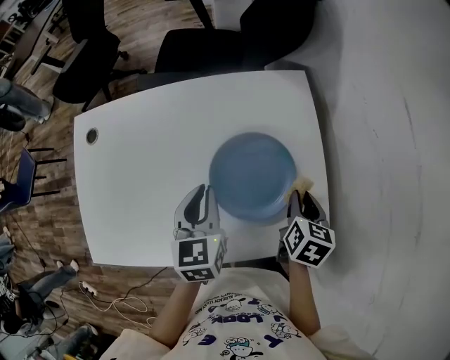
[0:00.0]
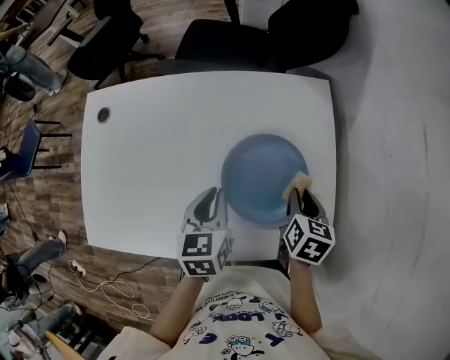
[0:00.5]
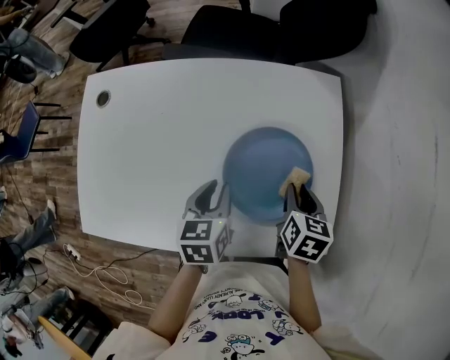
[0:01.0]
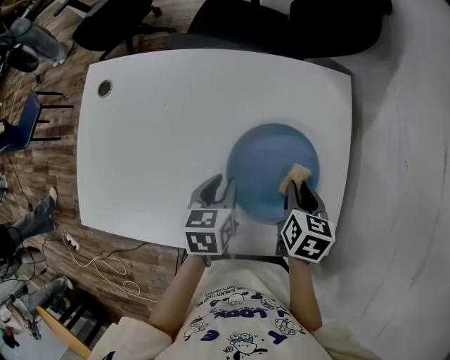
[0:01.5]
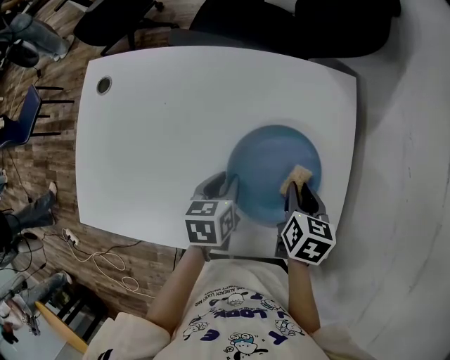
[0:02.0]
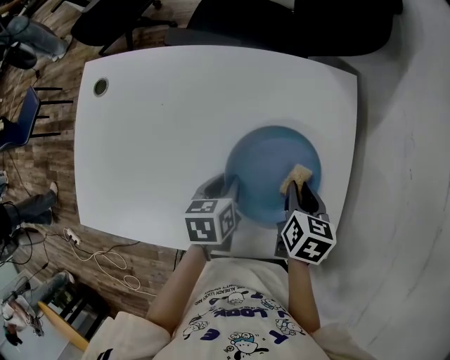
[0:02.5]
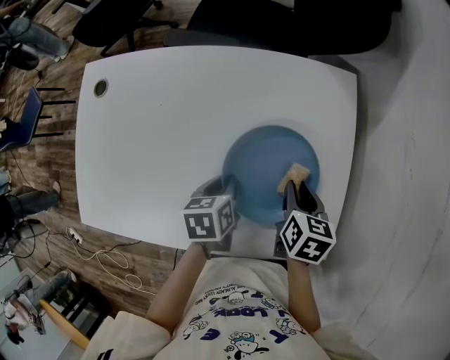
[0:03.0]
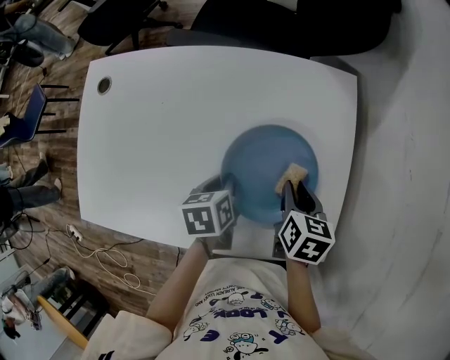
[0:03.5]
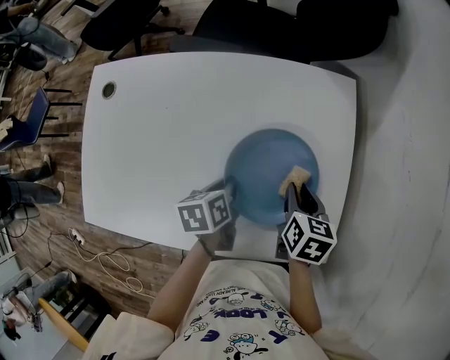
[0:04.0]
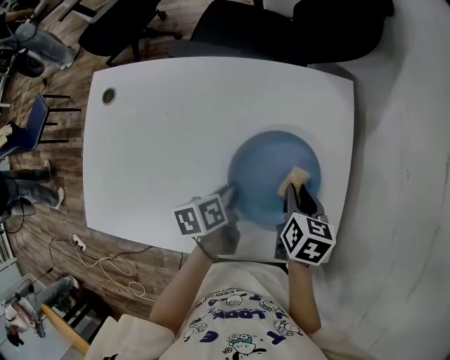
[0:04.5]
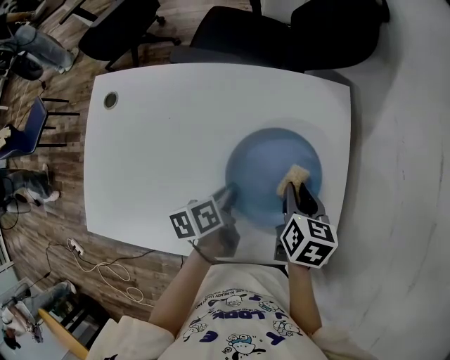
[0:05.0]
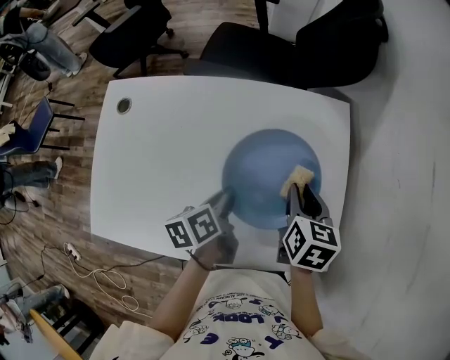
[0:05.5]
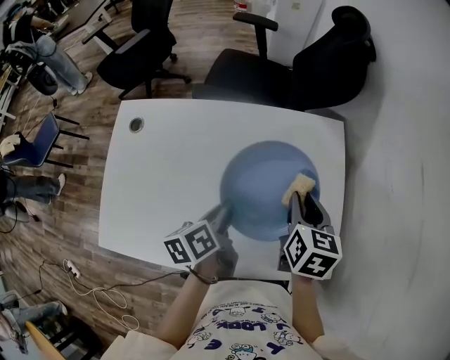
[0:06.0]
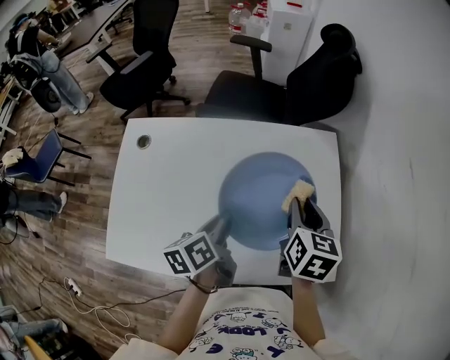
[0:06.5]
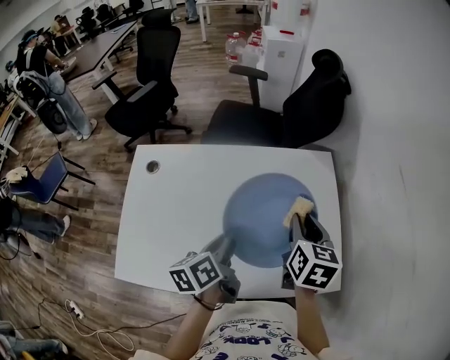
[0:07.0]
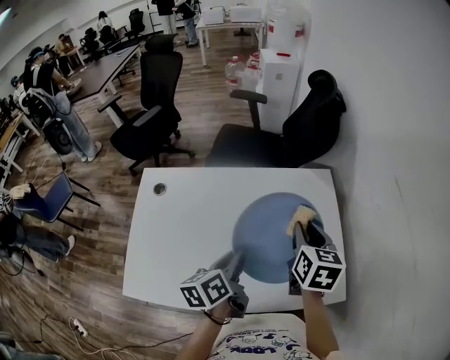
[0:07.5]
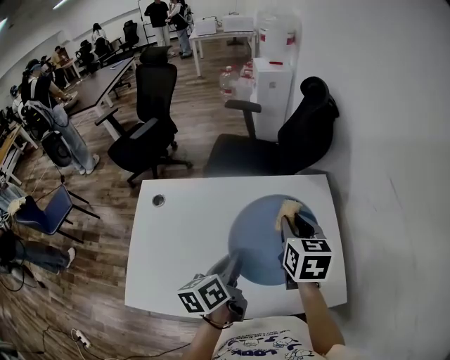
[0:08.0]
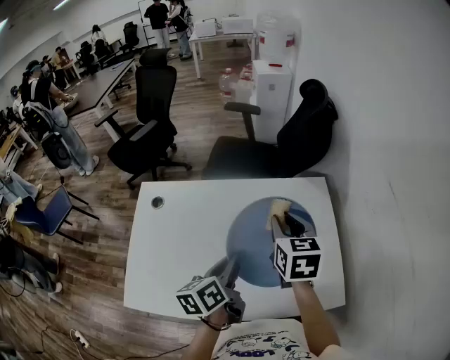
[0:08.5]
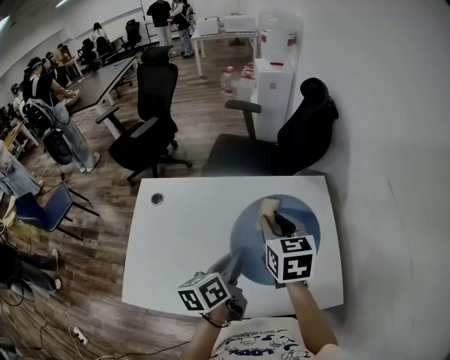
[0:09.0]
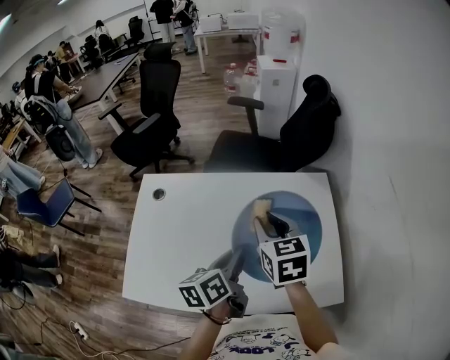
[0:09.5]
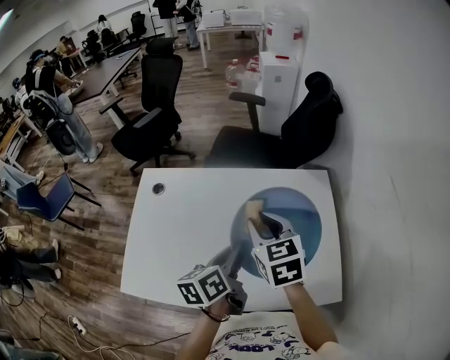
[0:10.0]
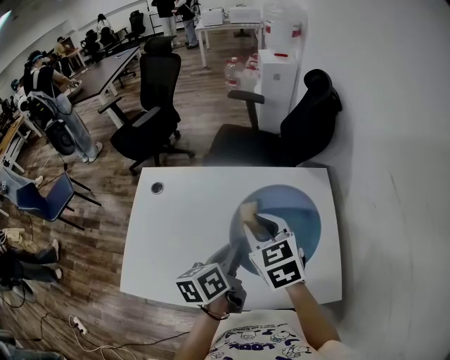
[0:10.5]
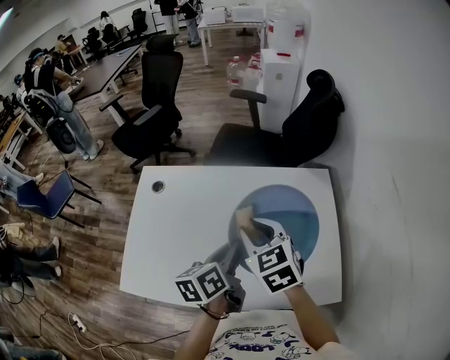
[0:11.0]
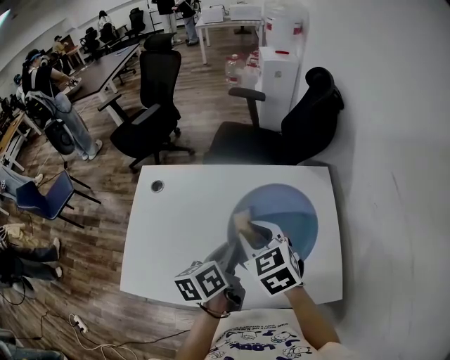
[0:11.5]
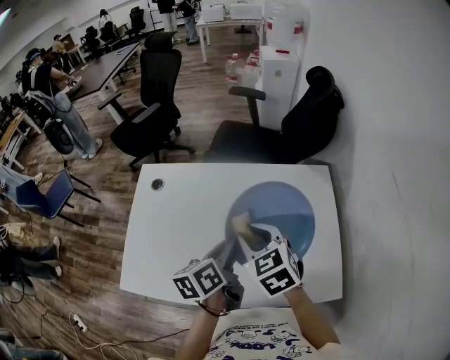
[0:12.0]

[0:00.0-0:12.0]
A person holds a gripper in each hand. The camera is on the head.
0:00.0 to 0:02.0: The right gripper goes about 5 cm to the left; the left gripper travels downward by about 10 cm, and changes its angle by about 30 degrees.
0:02.0 to 0:04.0: The grippers make only small movements.
0:04.0 to 0:06.0: Both grippers travel together upward and to the left, about 15 cm. The left gripper turns by about 20 degrees.
0:06.0 to 0:08.0: The right gripper heads upward and to the left, covering about 10 cm. The left gripper moves upward, approximately 10 cm.
0:08.0 to 0:10.0: The right gripper heads to the left, covering some 10 cm, and changes its angle by about 20 degrees.
0:10.0 to 0:12.0: The right gripper changes place by approximately 5 cm.

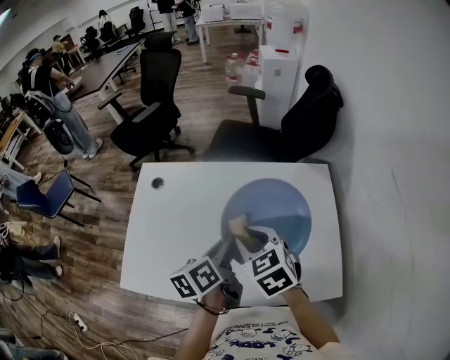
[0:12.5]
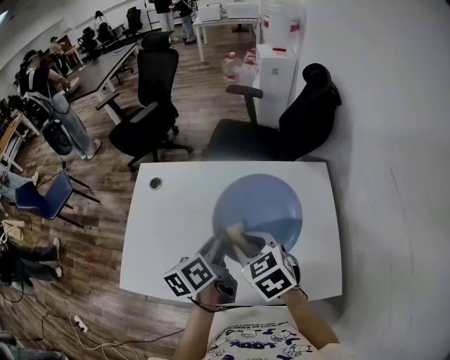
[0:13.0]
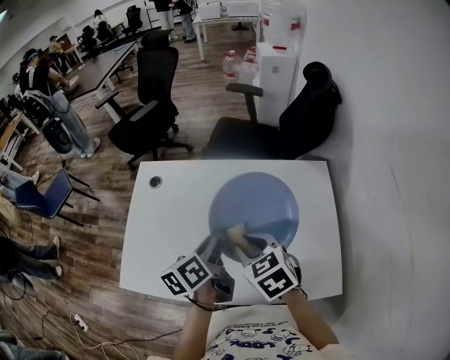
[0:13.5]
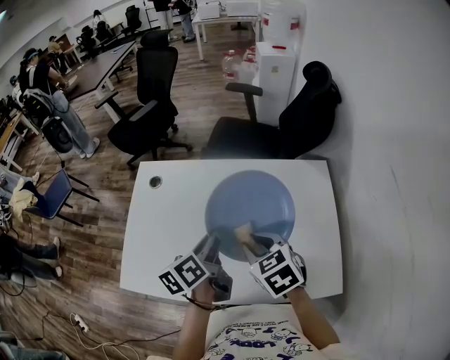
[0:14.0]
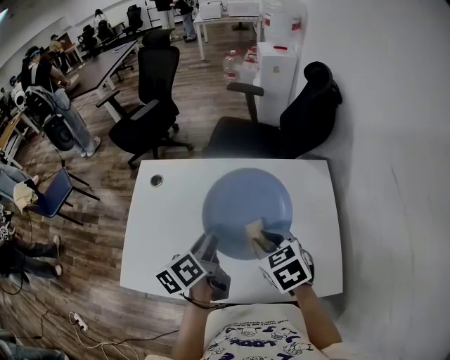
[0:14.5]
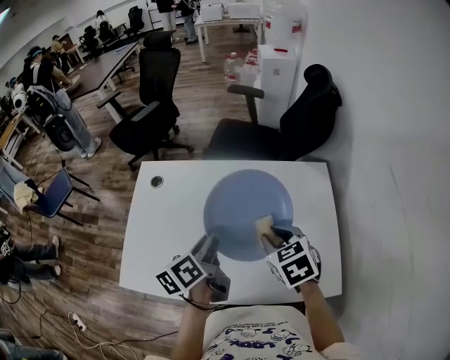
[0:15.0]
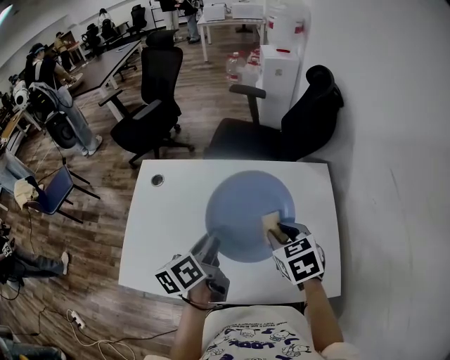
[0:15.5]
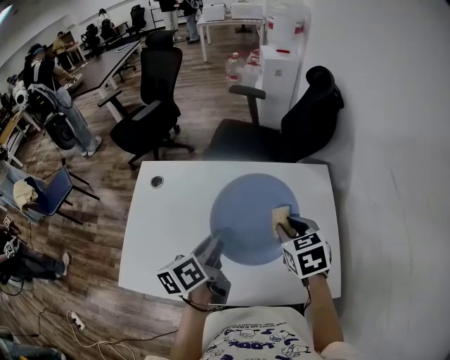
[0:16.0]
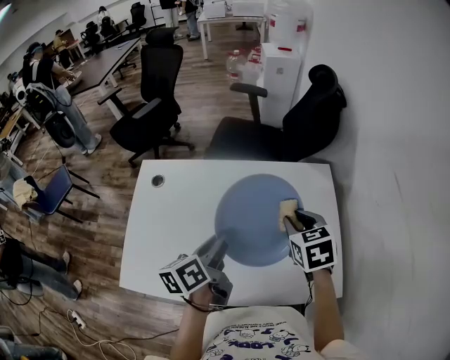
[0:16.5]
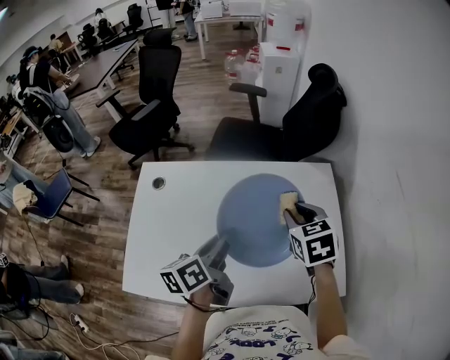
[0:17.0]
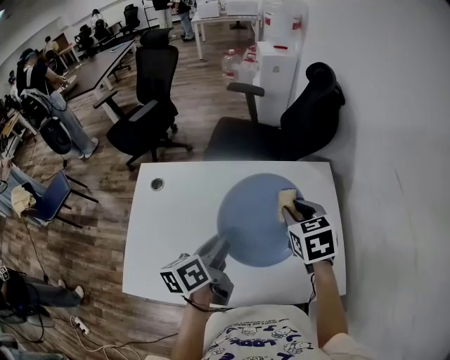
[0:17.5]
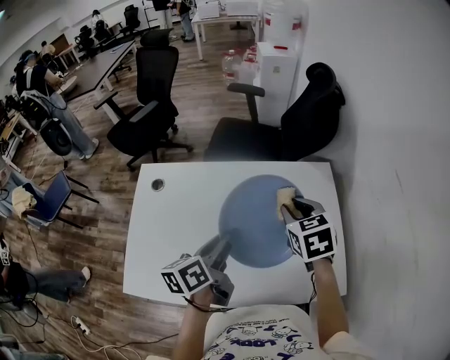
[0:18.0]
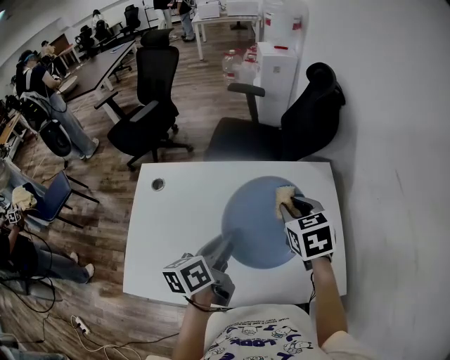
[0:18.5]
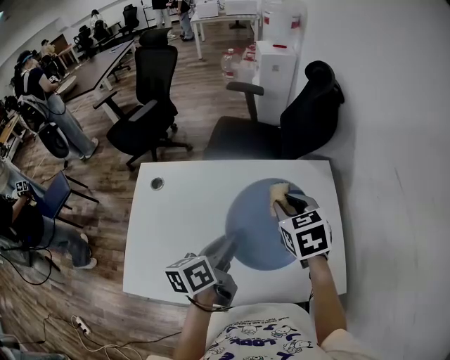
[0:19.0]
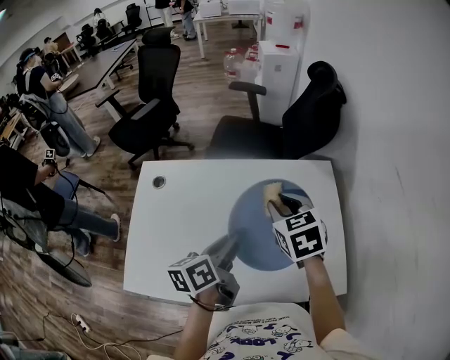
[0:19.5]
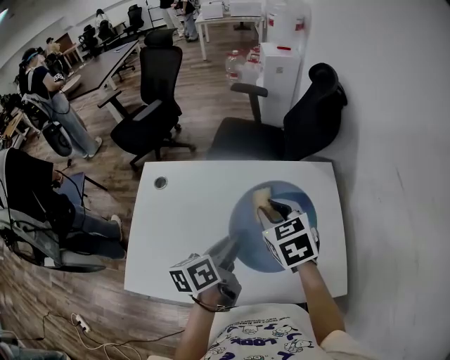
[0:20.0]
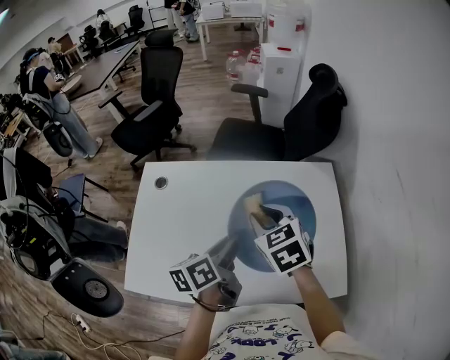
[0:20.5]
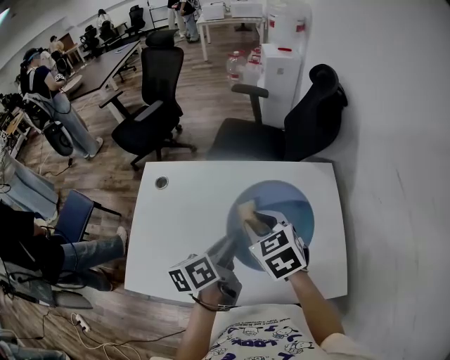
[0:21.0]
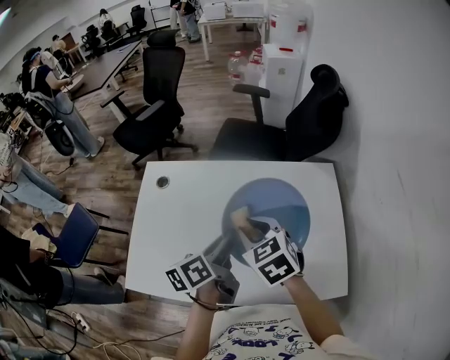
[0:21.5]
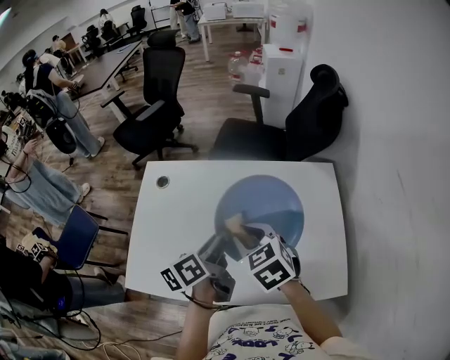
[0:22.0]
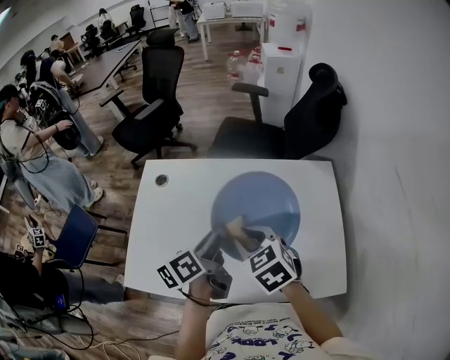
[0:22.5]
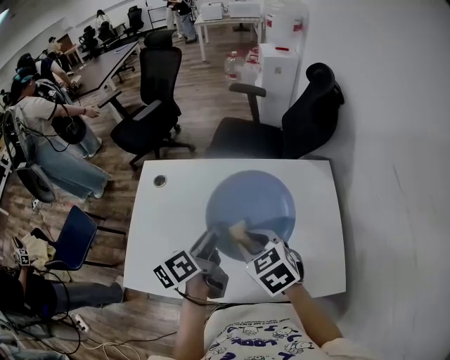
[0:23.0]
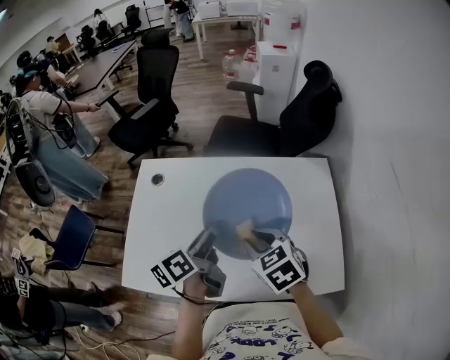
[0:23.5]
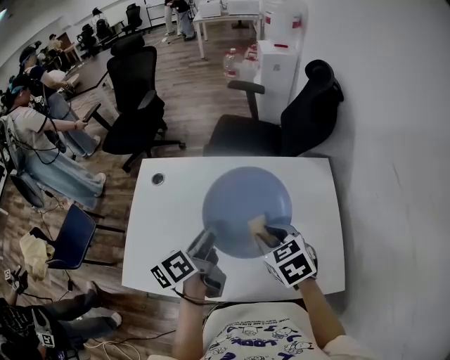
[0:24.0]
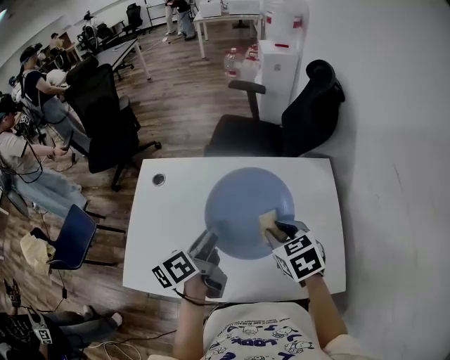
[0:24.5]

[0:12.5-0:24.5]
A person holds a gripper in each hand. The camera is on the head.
0:12.5 to 0:14.5: The right gripper shifts by approximately 5 cm.
0:14.5 to 0:16.5: The right gripper moves to the right and forward, some 10 cm.
0:16.5 to 0:18.5: The grippers stay close to where they were, moving slightly.
0:18.5 to 0:20.5: The right gripper shifts roughly 10 cm to the left.
0:20.5 to 0:22.5: The right gripper is displaced backward by some 5 cm.
0:22.5 to 0:24.5: The right gripper travels to the right by roughly 10 cm.

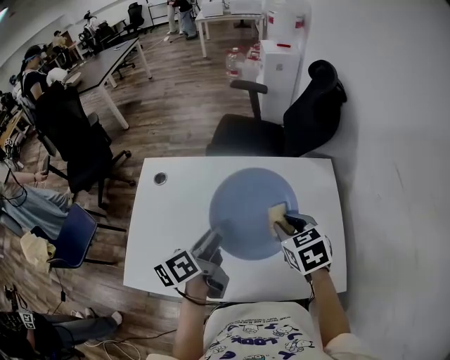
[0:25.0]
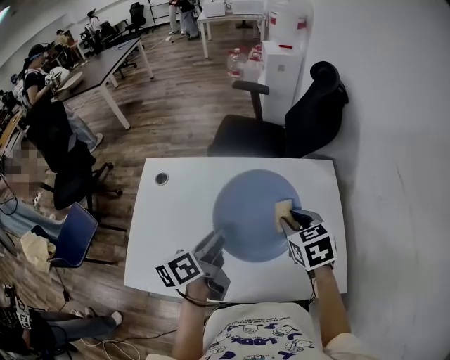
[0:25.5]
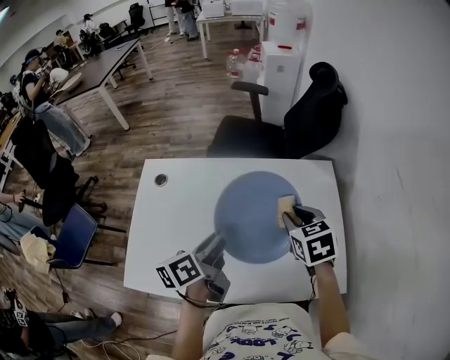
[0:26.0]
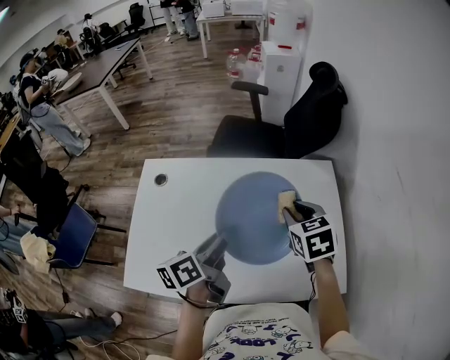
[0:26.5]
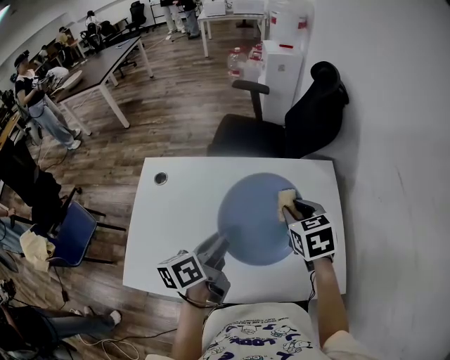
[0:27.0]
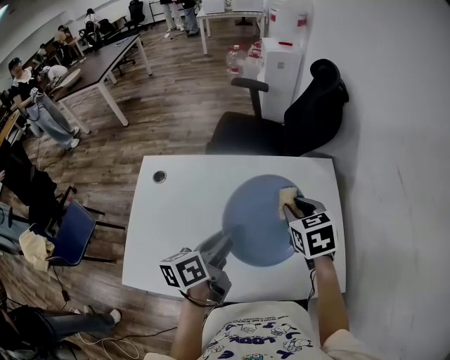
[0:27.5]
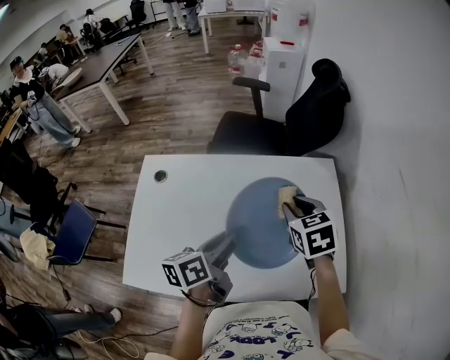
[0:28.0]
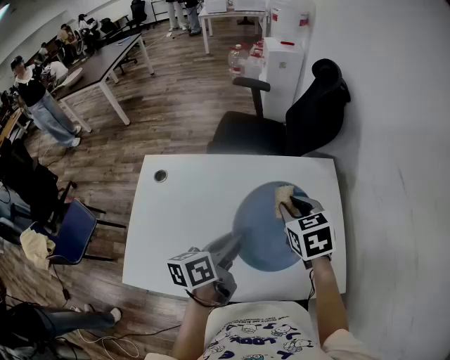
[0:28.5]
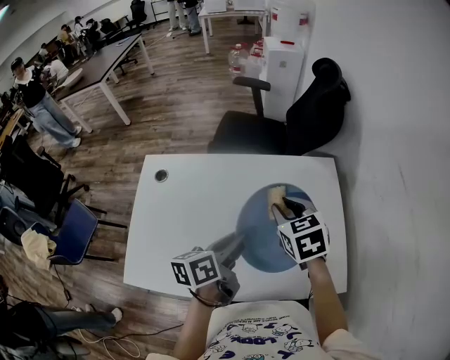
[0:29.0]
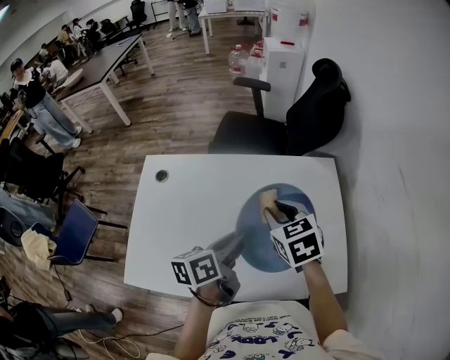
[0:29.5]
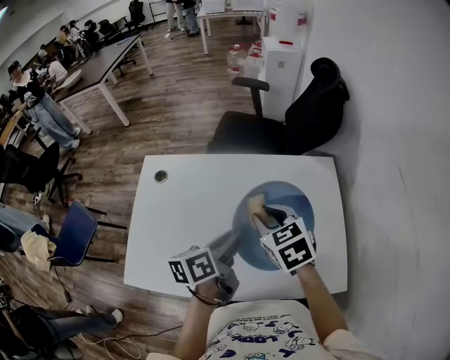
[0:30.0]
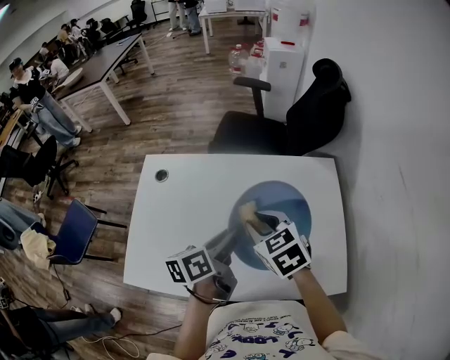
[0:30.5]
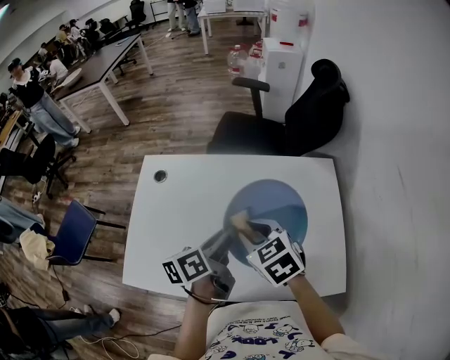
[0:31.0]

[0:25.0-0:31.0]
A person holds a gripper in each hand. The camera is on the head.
0:25.0 to 0:27.0: The right gripper shifts by roughly 5 cm.
0:27.0 to 0:29.0: The grippers stay close to where they were, moving slightly.
0:29.0 to 0:31.0: The right gripper is displaced to the left and backward by roughly 10 cm.
